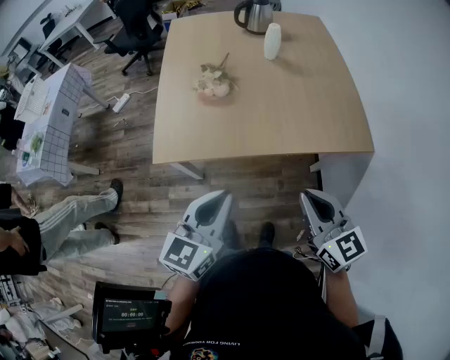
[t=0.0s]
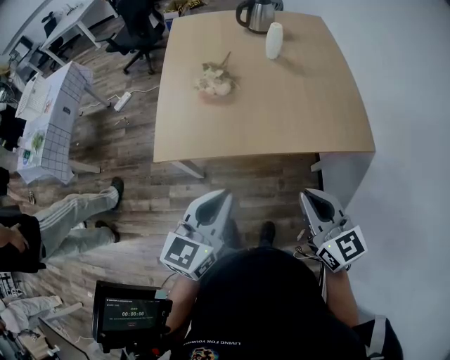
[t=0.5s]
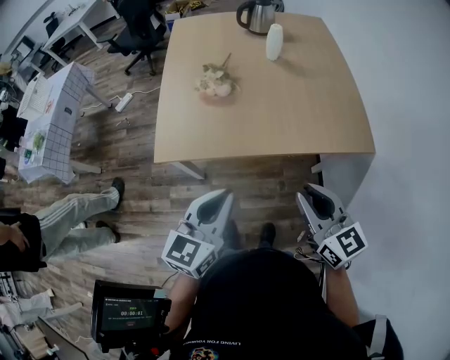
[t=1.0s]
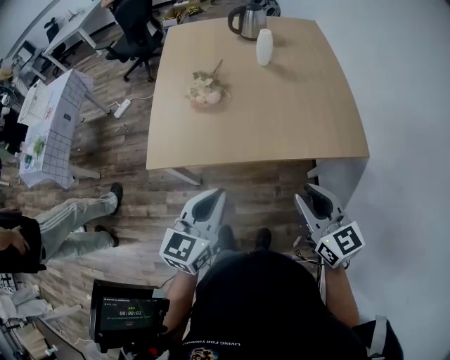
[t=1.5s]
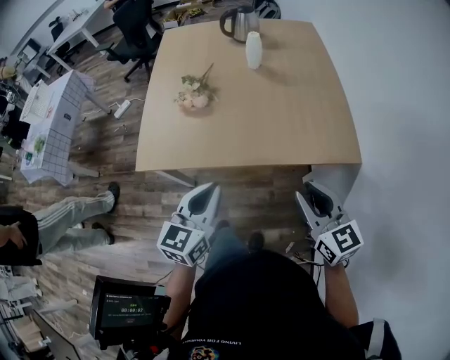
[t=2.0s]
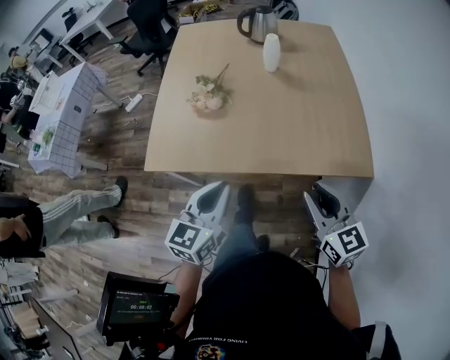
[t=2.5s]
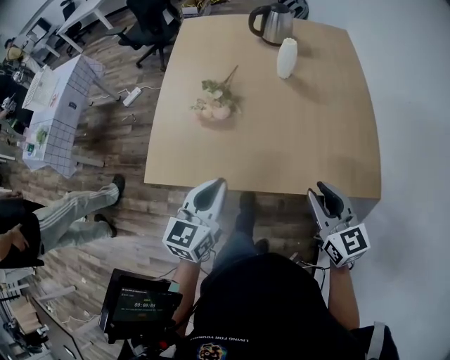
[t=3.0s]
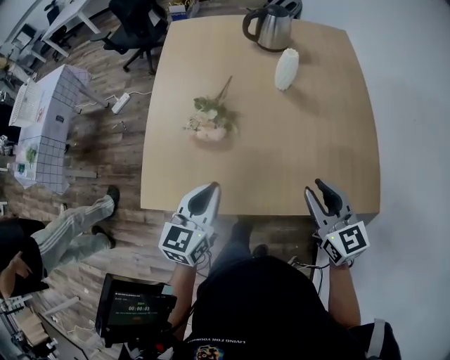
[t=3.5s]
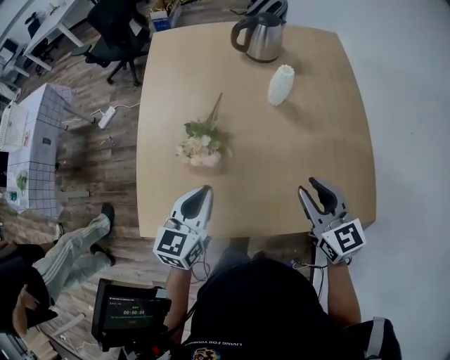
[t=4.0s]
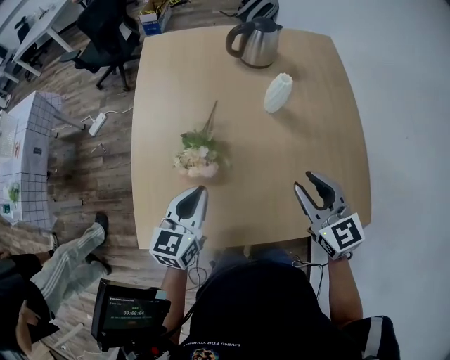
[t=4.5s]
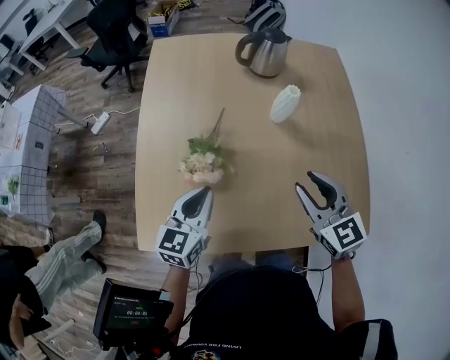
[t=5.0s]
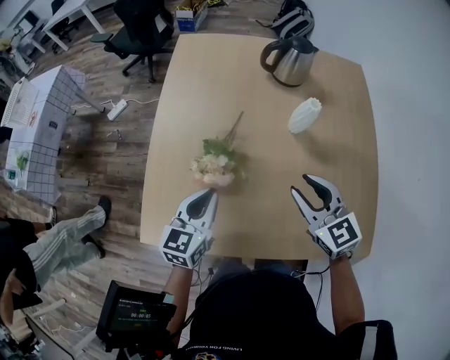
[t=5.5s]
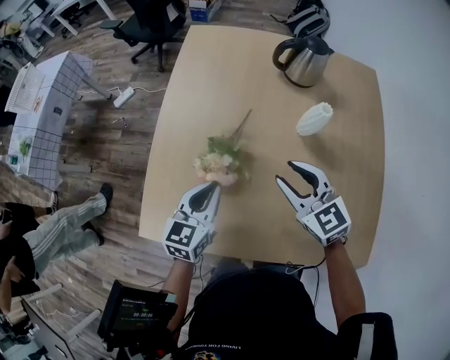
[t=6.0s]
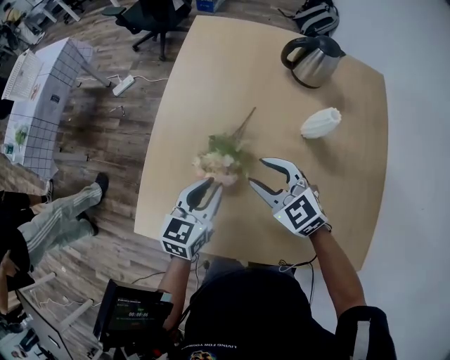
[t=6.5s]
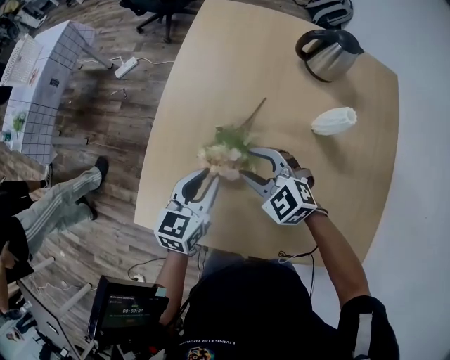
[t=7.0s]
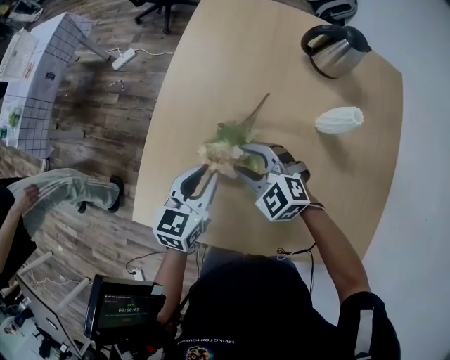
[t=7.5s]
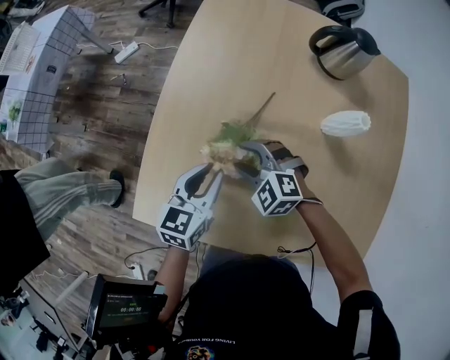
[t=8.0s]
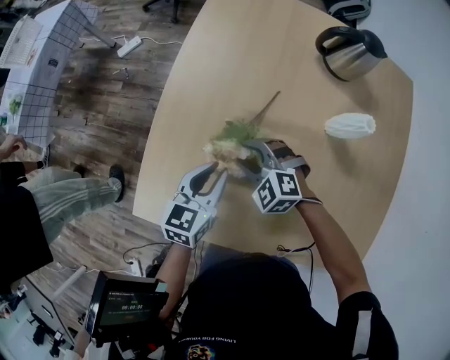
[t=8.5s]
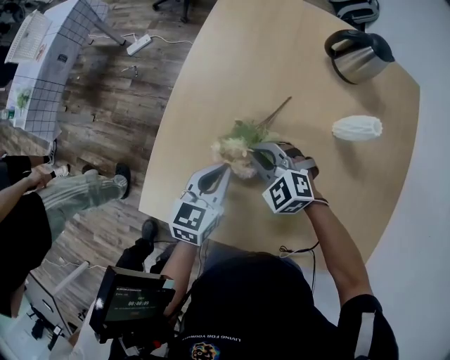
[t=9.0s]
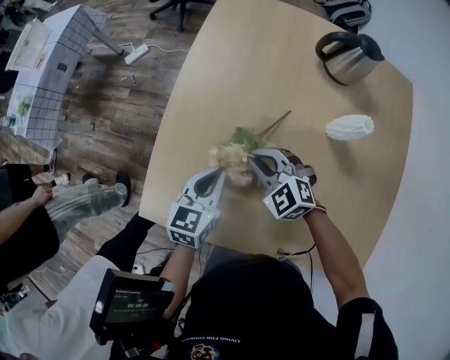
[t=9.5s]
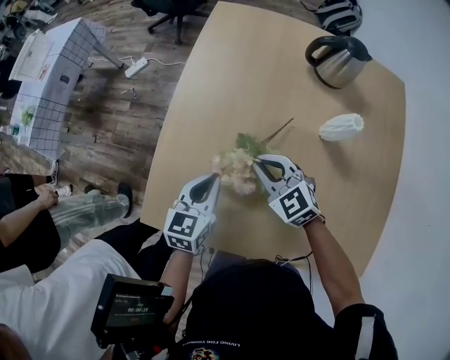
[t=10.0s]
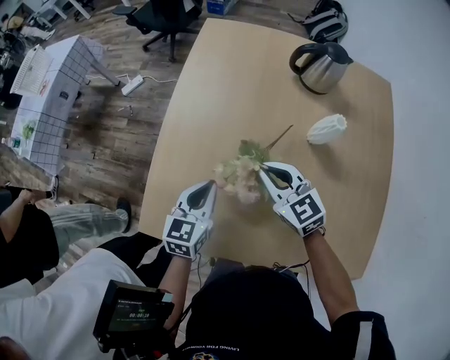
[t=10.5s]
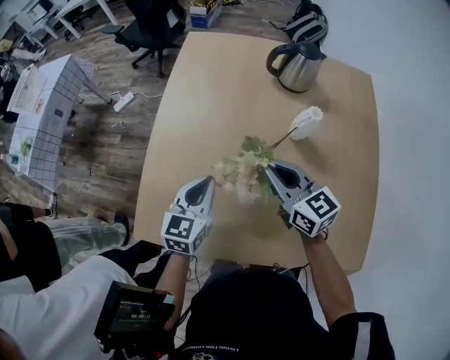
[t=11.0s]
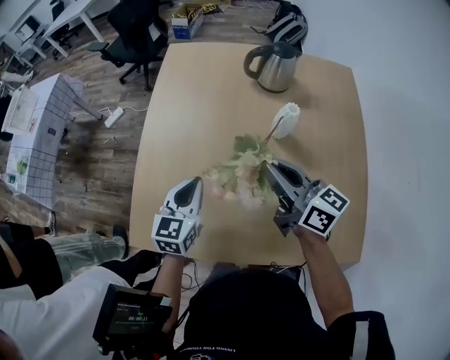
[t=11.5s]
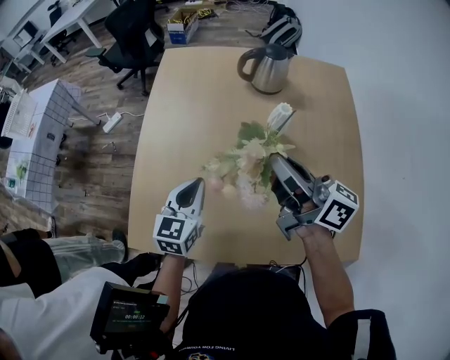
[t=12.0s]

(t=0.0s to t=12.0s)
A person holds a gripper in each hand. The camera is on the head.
t=0.0s - t=2.0s: Both grippers travel together to the right, roughly 10 cm.
t=2.0s - t=4.0s: The two grippers go approximately 25 cm forward.
t=4.0s - t=6.0s: The left gripper shifts some 5 cm forward. The right gripper heads forward and to the left, covering some 15 cm, and rotates some 30 degrees.
t=6.0s - t=8.0s: The right gripper moves downward and to the left, roughly 20 cm, and turns by about 40 degrees, while the left gripper moves downward, roughly 5 cm, and opens up.
t=8.0s - t=10.0s: The right gripper heads upward, covering about 5 cm, swivels some 30 degrees, and closes up.
t=10.0s - t=12.0s: The left gripper heads upward and to the right, covering some 10 cm; the right gripper is displaced upward and to the right by some 25 cm, and points its fingers some 40 degrees further upward.

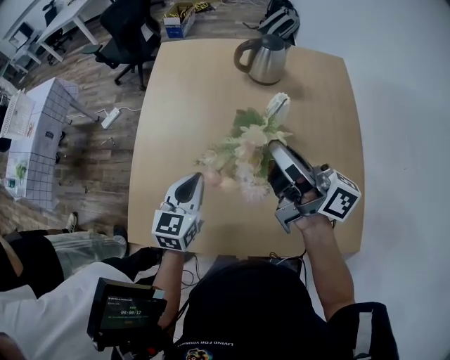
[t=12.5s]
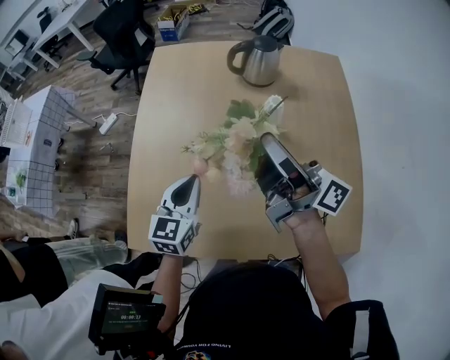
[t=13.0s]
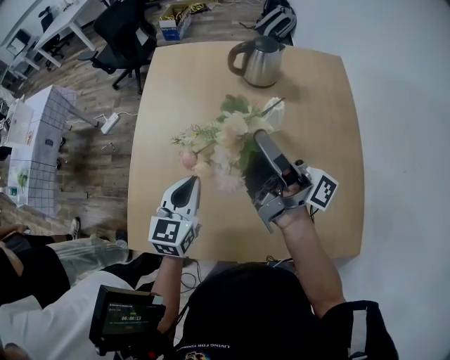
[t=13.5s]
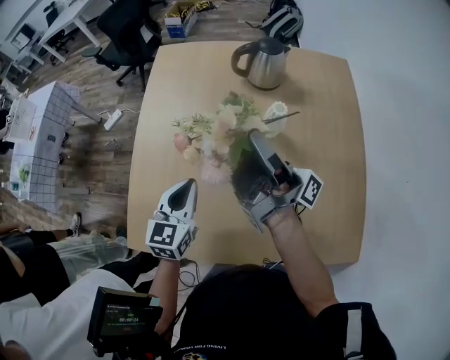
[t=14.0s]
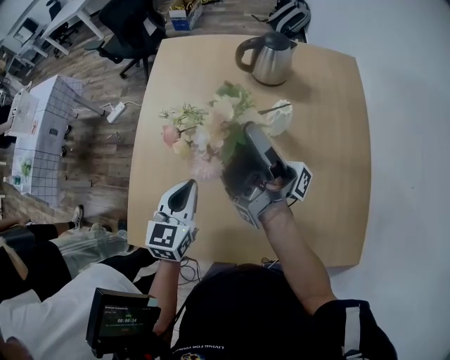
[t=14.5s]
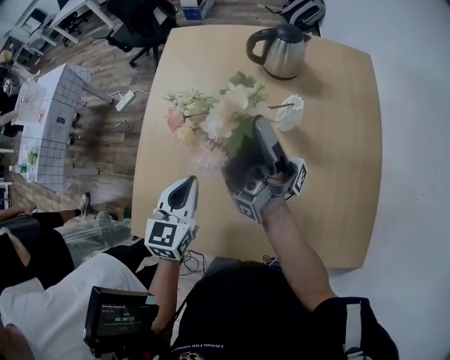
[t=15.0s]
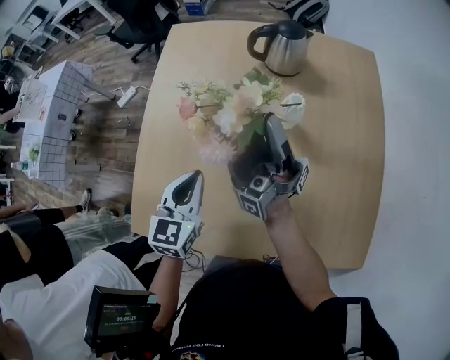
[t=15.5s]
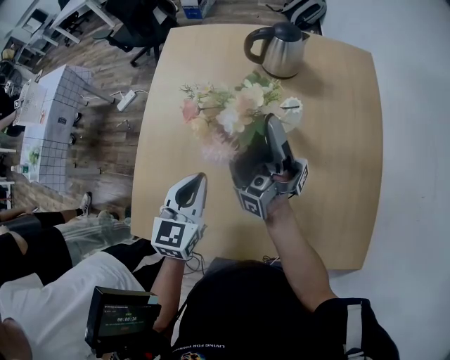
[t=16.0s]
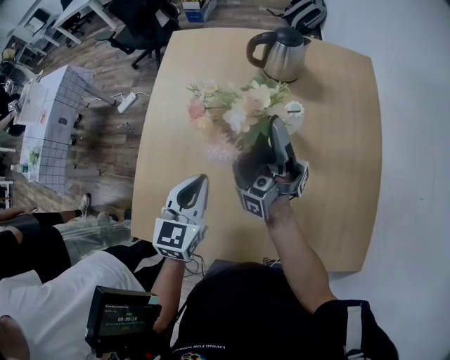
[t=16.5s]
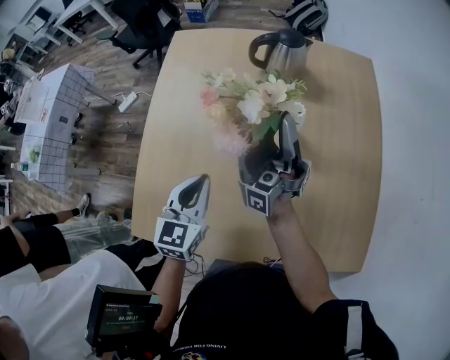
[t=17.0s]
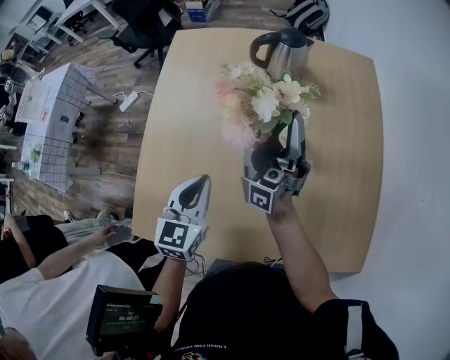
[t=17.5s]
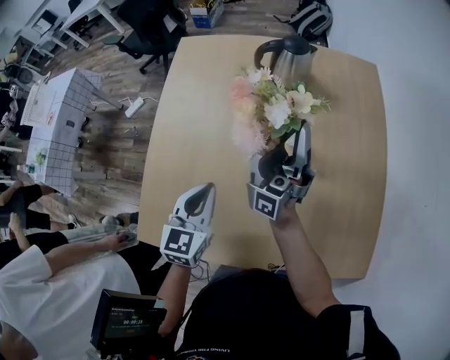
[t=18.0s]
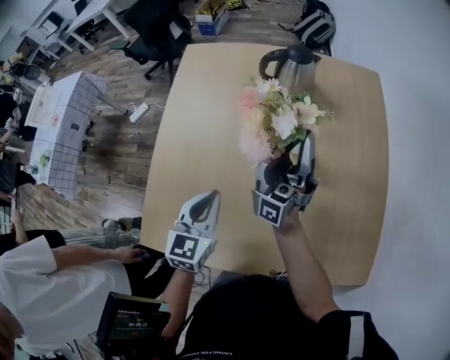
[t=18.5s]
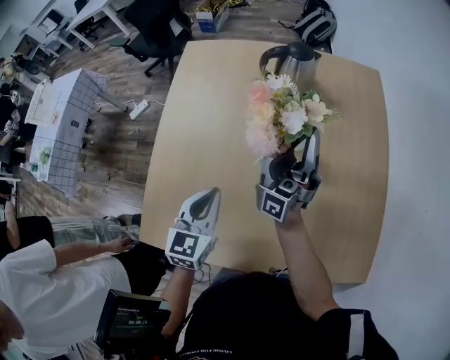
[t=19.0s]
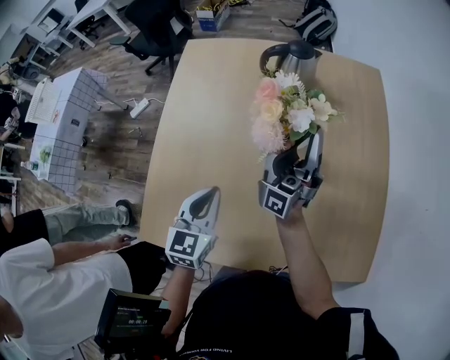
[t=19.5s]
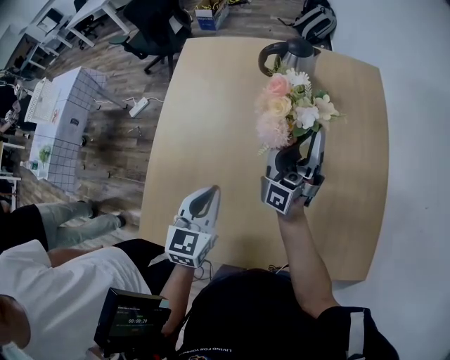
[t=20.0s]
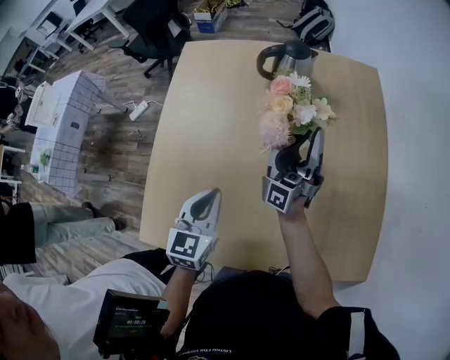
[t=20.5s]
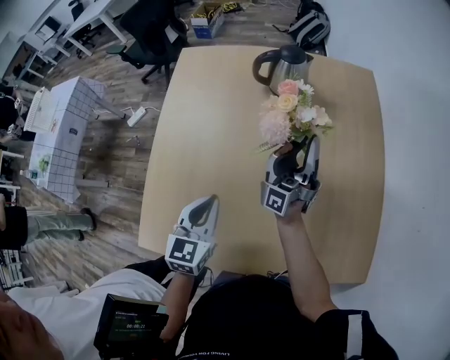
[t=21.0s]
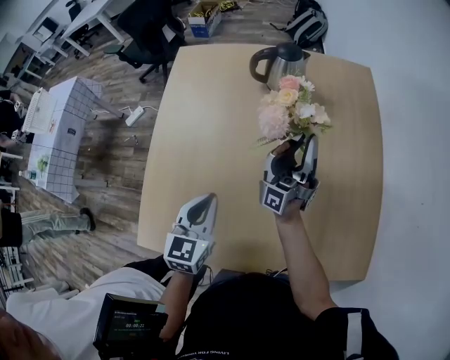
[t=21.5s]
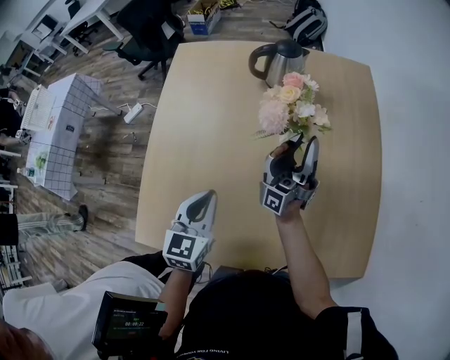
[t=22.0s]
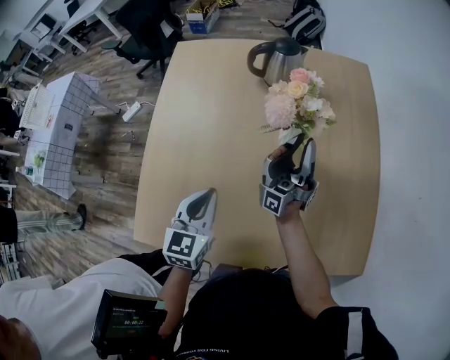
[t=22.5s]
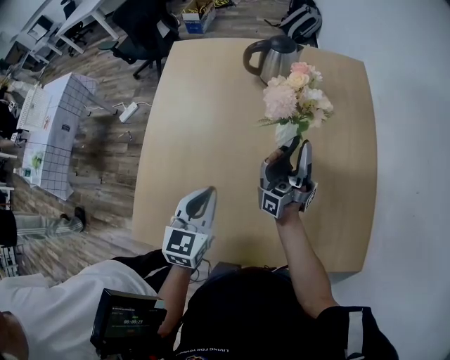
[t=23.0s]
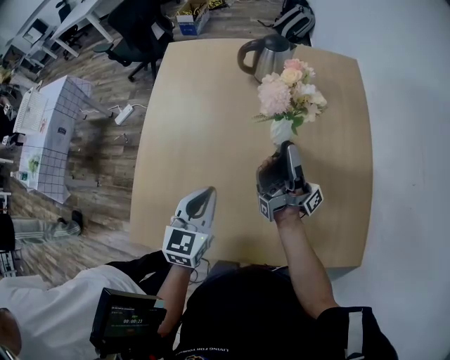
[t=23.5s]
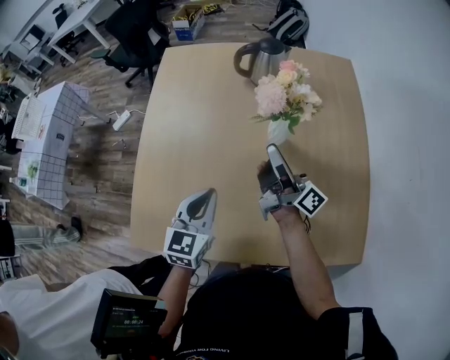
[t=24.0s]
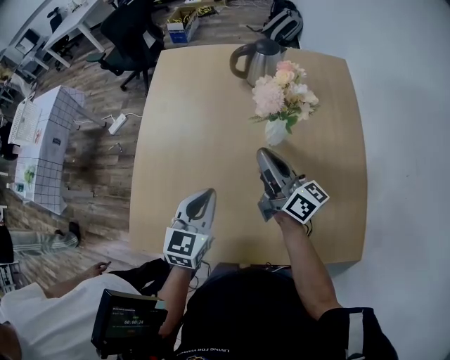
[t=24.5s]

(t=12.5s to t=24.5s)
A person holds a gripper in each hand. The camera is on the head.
t=12.5s - t=14.5s: The right gripper shifts roughly 5 cm forward, and tilts its fingers roughly 30 degrees upward.
t=14.5s - t=16.5s: The right gripper shifts by about 5 cm.
t=16.5s - t=18.5s: There are only small adjustments of the grippers.
t=18.5s - t=20.5s: The right gripper shifts by roughly 5 cm.
t=20.5s - t=22.5s: There are only small adjustments of the grippers.
t=22.5s - t=24.5s: The right gripper changes place by about 10 cm, and points its fingers some 30 degrees further downward.

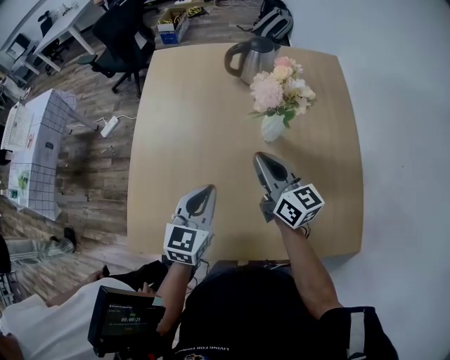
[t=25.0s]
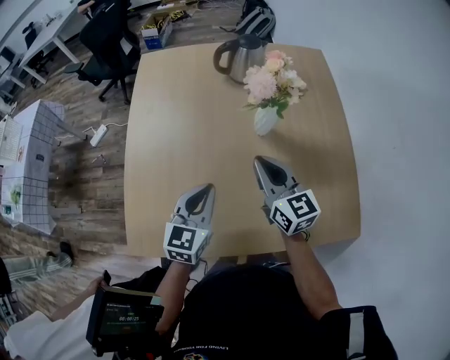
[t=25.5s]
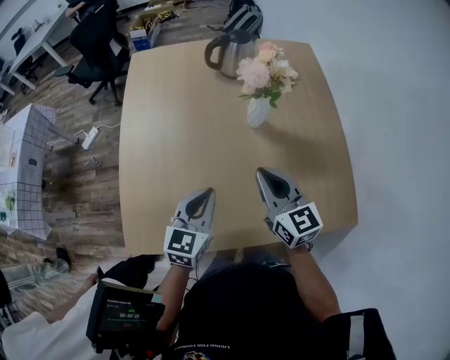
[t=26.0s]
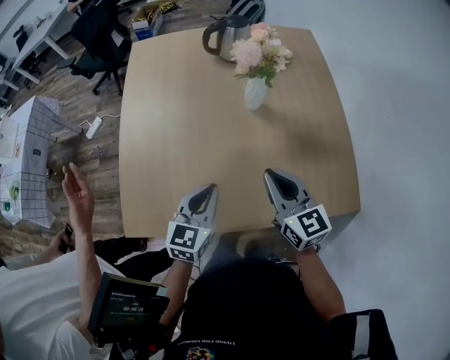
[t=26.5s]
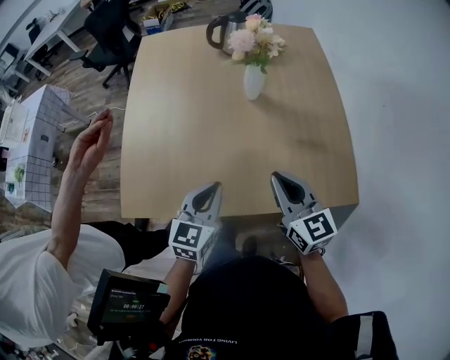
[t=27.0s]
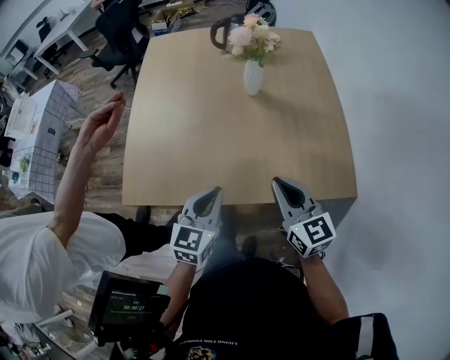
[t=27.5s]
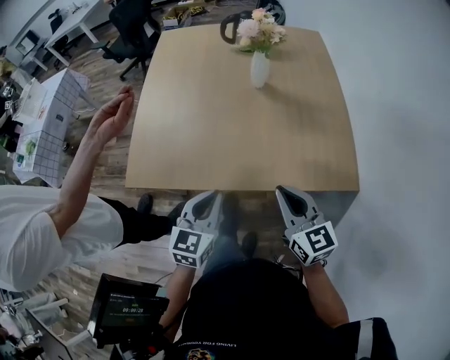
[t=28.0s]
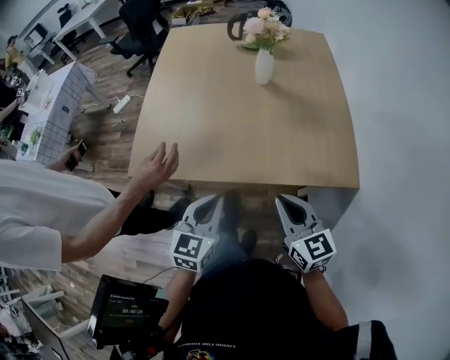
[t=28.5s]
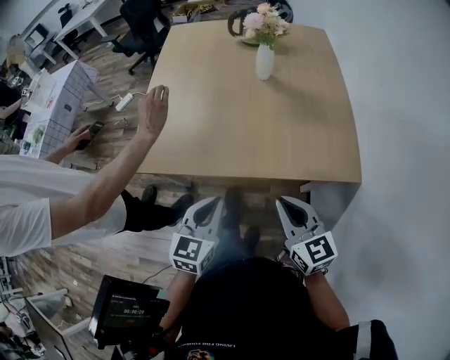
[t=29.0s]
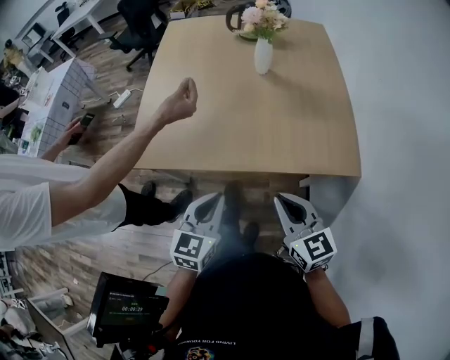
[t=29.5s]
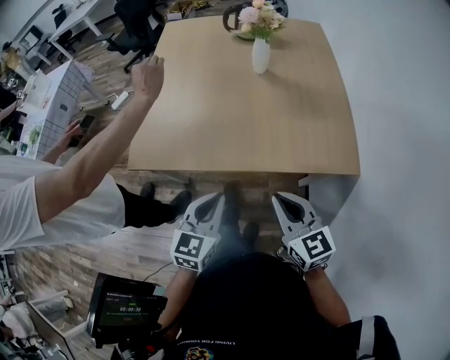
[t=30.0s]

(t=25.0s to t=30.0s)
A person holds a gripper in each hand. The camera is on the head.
t=25.0s - t=27.5s: The grippers both shift backward by roughly 25 cm. The right gripper swivels approximately 20 degrees.
t=27.5s - t=30.0s: The two grippers go approximately 15 cm backward.
